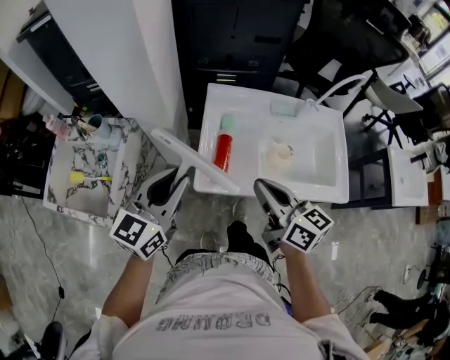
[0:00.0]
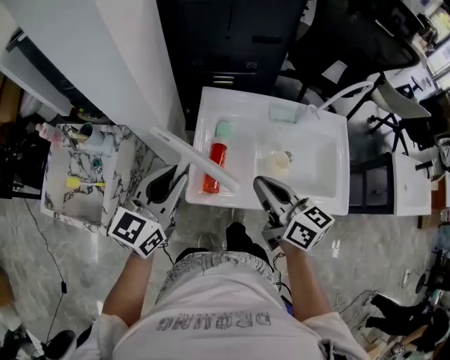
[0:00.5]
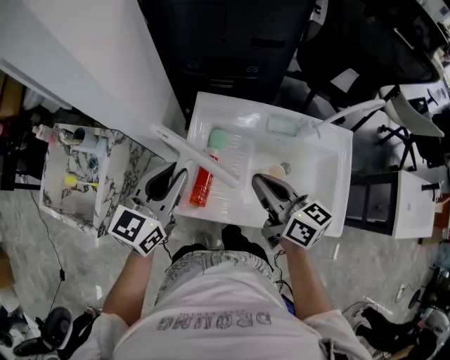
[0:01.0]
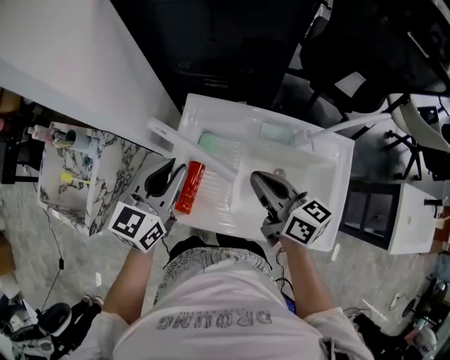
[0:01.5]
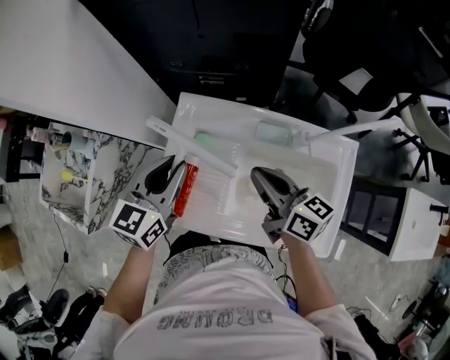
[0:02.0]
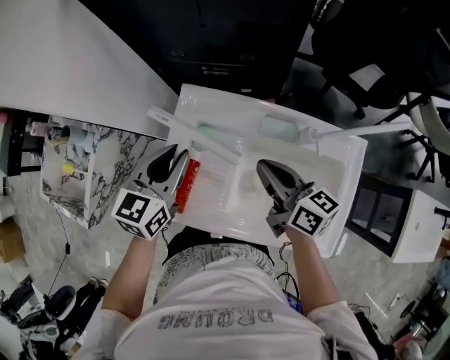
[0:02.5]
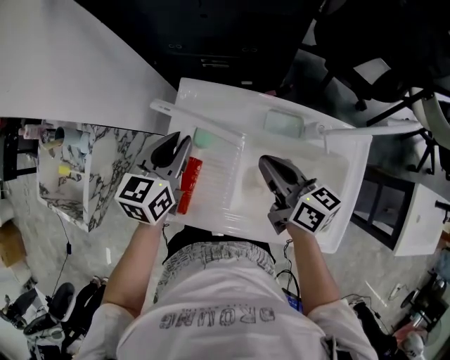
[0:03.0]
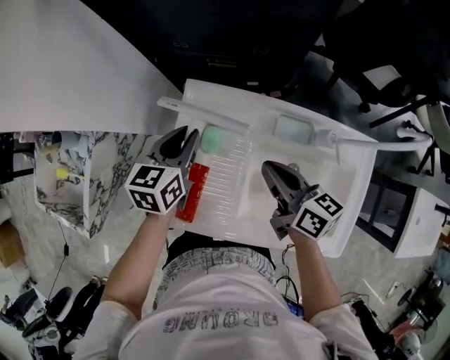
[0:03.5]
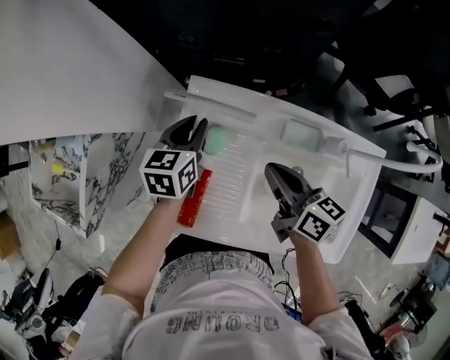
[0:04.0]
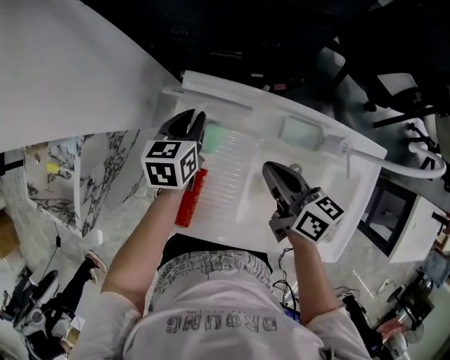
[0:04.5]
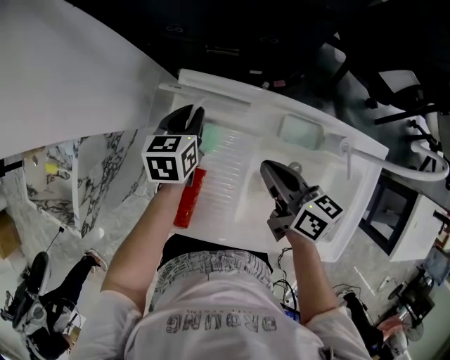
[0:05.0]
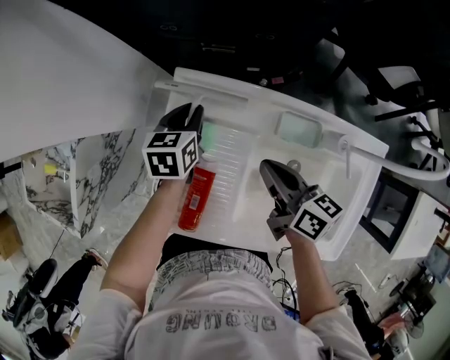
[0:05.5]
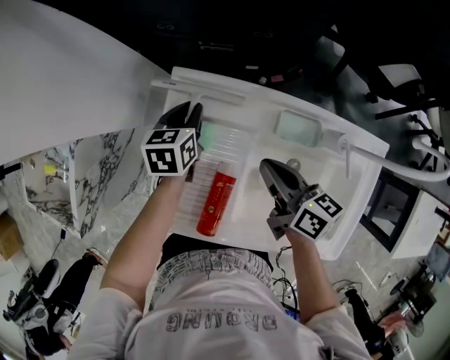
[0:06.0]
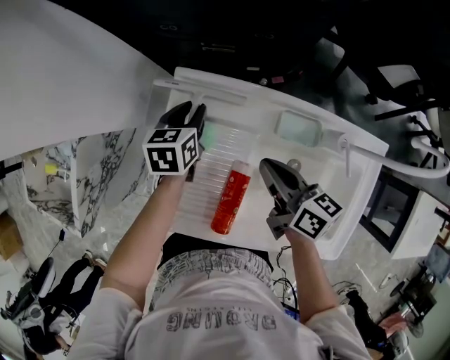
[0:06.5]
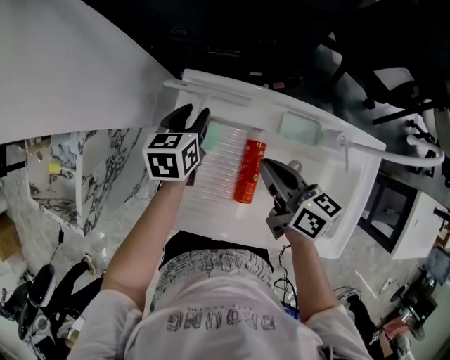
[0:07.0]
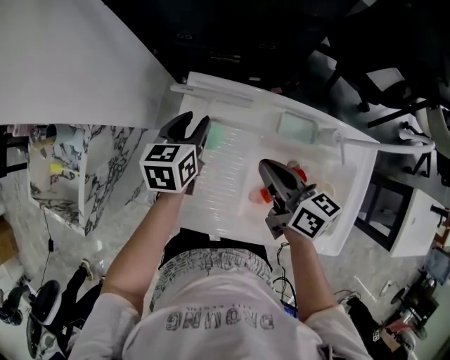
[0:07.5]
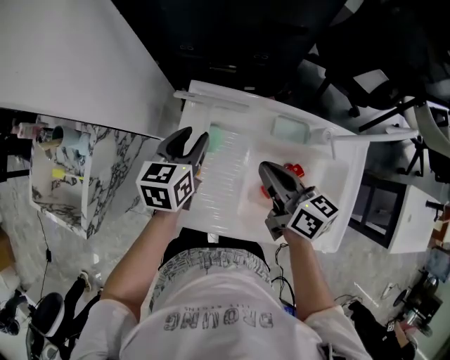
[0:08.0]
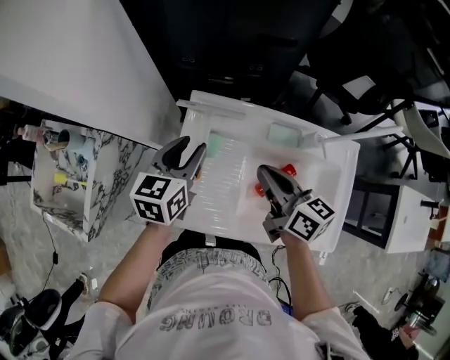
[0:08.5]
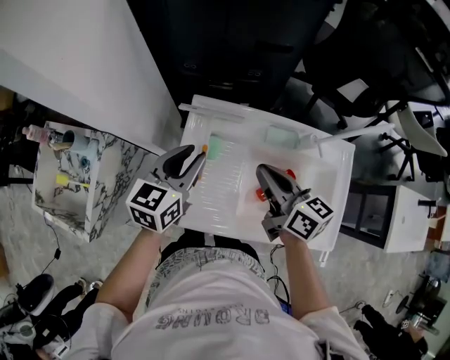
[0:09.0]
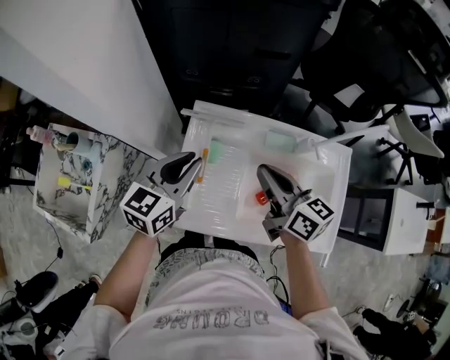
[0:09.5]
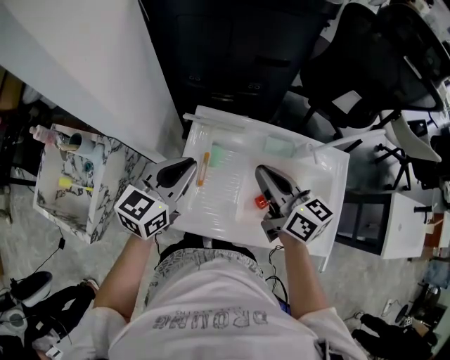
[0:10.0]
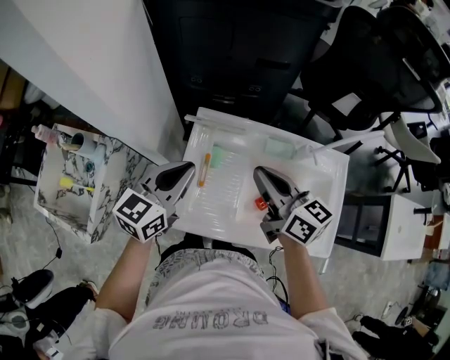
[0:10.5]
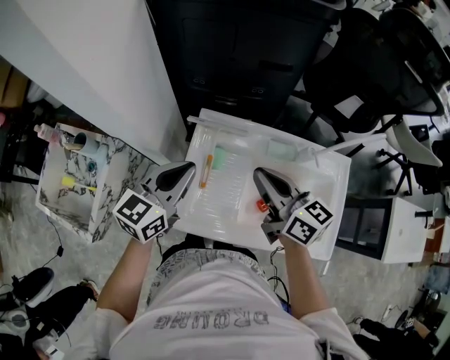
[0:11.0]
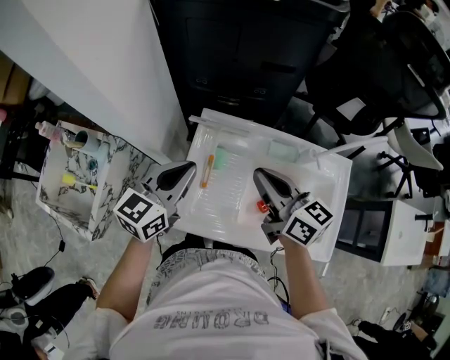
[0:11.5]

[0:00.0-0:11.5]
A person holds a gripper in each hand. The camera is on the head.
0:00.0 to 0:02.0: The two grippers go some 25 cm forward and to the right.
0:02.0 to 0:04.0: The right gripper goes about 10 cm downward and forward. Meanwhile the left gripper heads downward and forward, covering some 20 cm, and turns by about 20 degrees.
0:04.0 to 0:06.0: The left gripper is displaced downward by roughly 5 cm.
0:06.0 to 0:07.5: The right gripper moves roughly 5 cm, while the left gripper is displaced upward by approximately 10 cm, and opens up.
0:07.5 to 0:09.5: The left gripper travels upward and backward by some 20 cm, turns by roughly 30 degrees, and closes up. Meanwhile the right gripper shifts approximately 10 cm upward.
0:09.5 to 0:11.5: There are only small adjustments of the grippers.

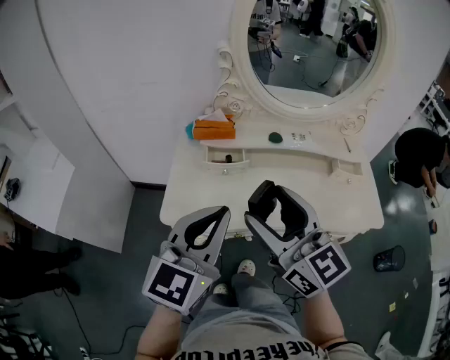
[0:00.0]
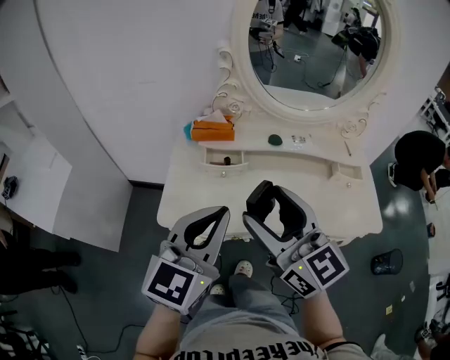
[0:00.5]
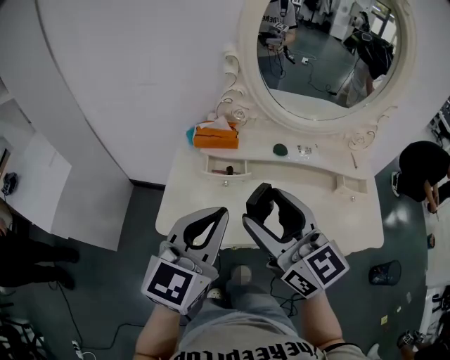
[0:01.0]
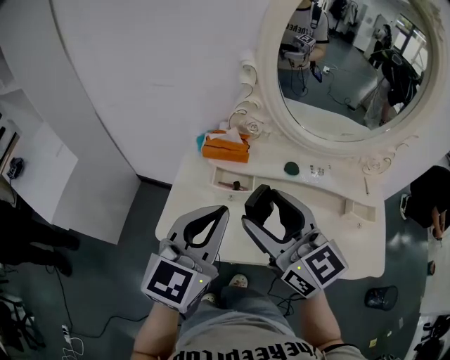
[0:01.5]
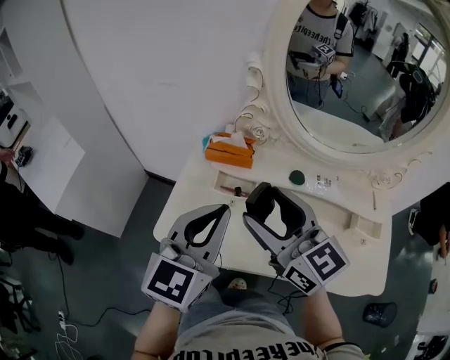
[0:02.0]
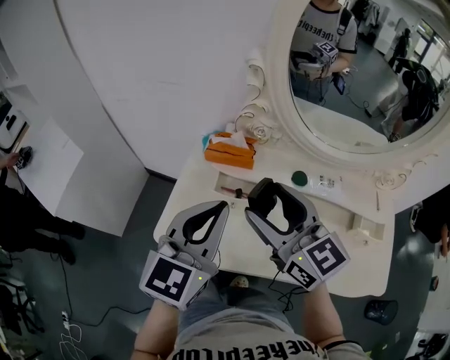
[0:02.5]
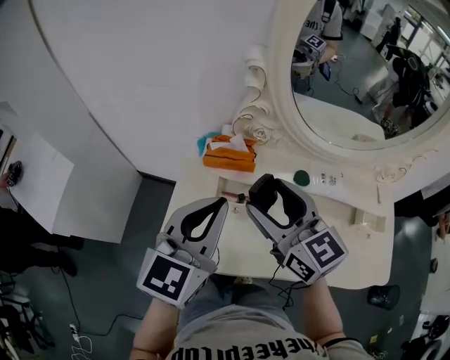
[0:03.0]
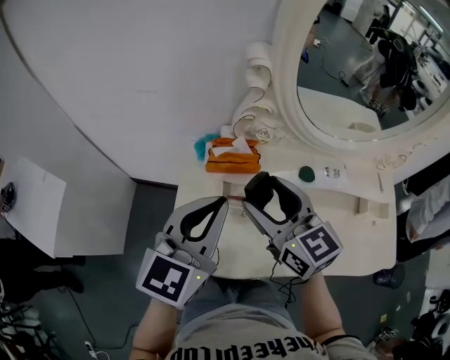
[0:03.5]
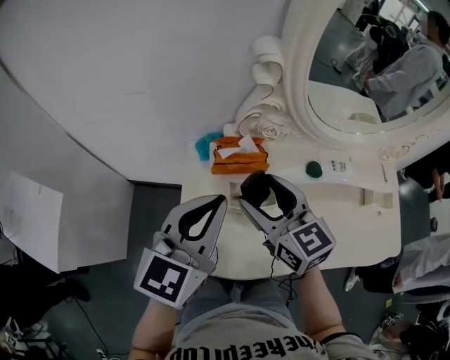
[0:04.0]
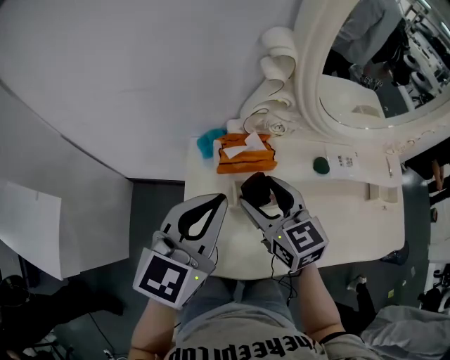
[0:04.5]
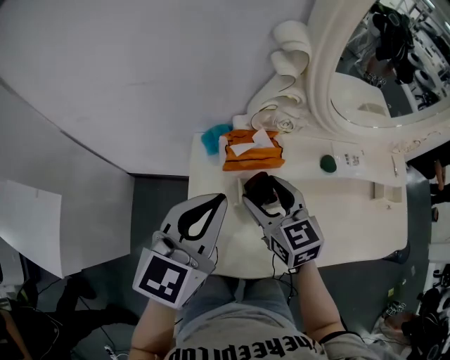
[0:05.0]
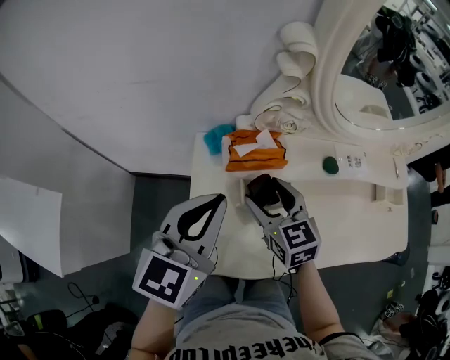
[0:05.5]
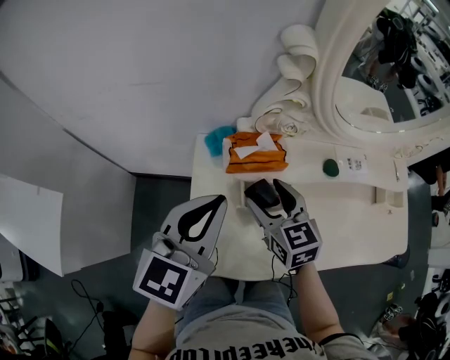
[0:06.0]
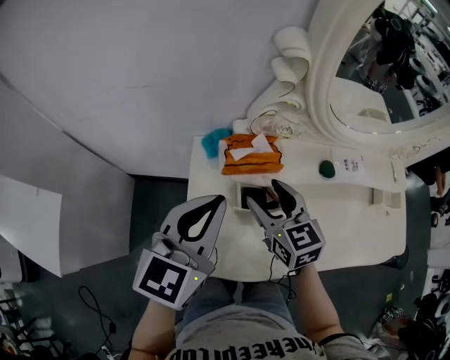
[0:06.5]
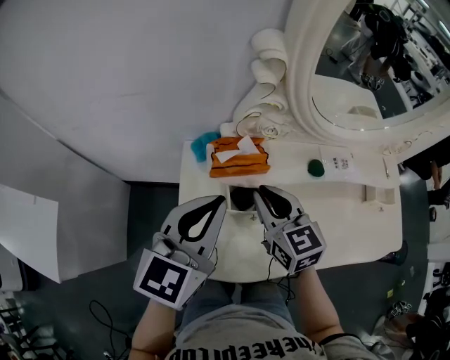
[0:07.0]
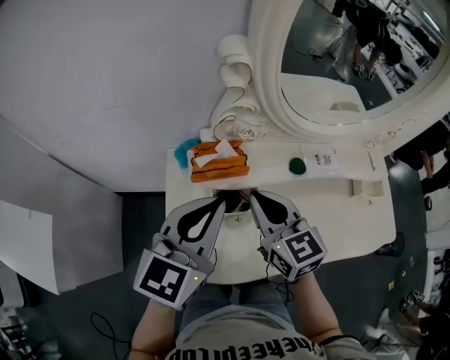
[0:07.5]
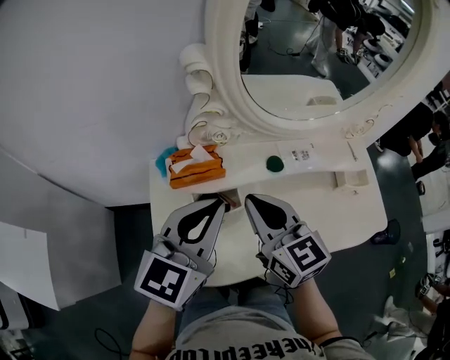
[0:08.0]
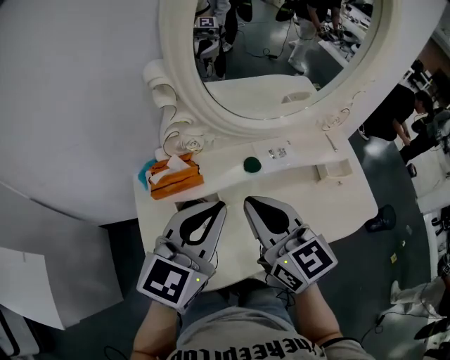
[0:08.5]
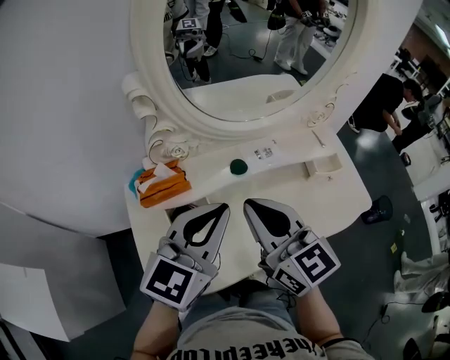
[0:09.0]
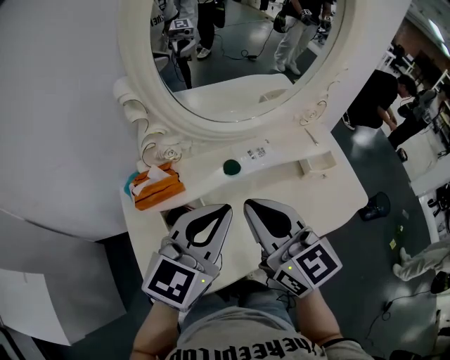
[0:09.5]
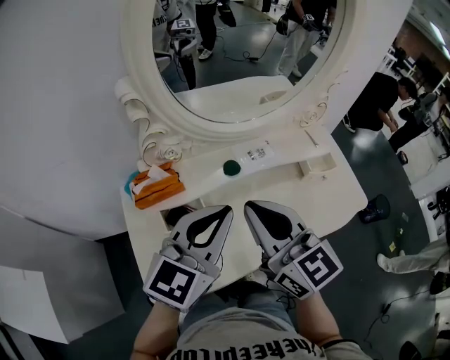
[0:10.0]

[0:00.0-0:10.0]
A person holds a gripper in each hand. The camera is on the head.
0:00.0 to 0:02.0: The two grippers go some 15 cm forward.
0:02.0 to 0:04.0: The left gripper heads forward and to the left, covering roughly 15 cm, while the right gripper moves forward, downward and to the left, approximately 15 cm, and changes its angle by some 20 degrees.
0:04.0 to 0:06.0: The right gripper shifts approximately 10 cm downward; the left gripper changes place by approximately 5 cm.
0:06.0 to 0:08.0: The left gripper is displaced to the right by approximately 10 cm. The right gripper travels upward and to the right by approximately 15 cm, and closes up.
0:08.0 to 0:10.0: The left gripper goes some 10 cm to the right, while the right gripper is displaced to the right and upward by roughly 10 cm.

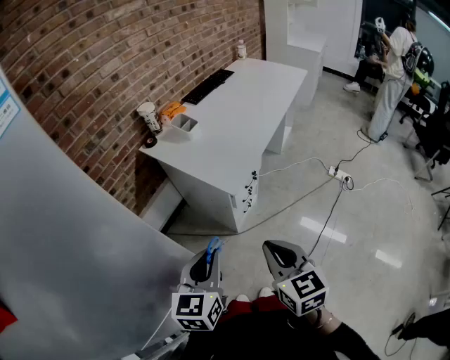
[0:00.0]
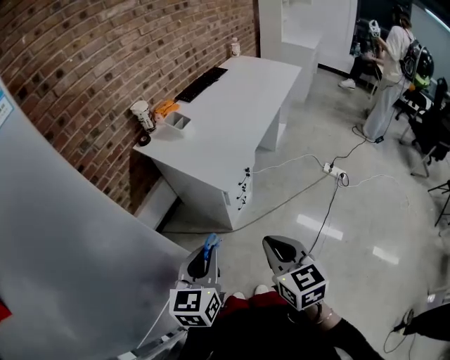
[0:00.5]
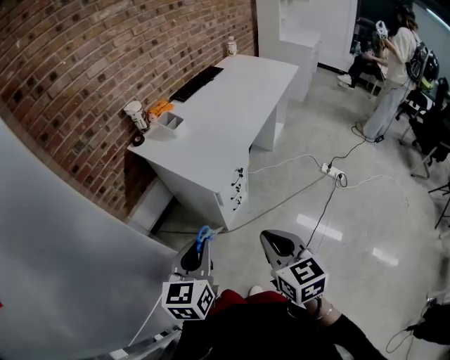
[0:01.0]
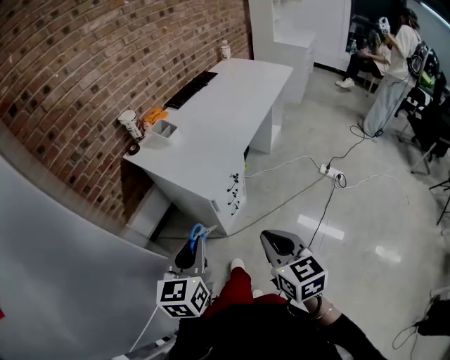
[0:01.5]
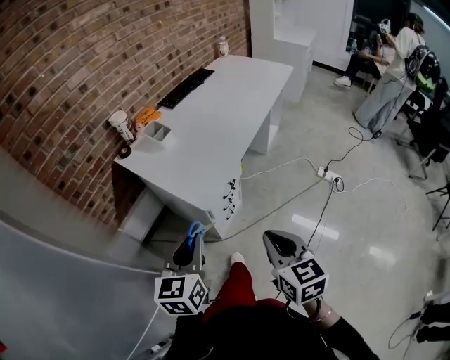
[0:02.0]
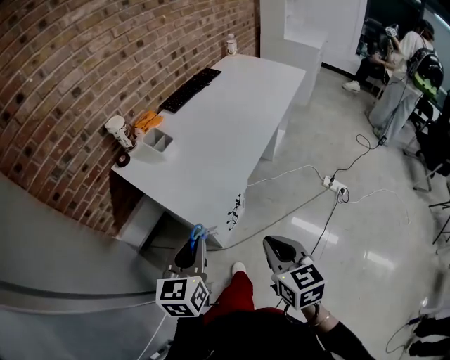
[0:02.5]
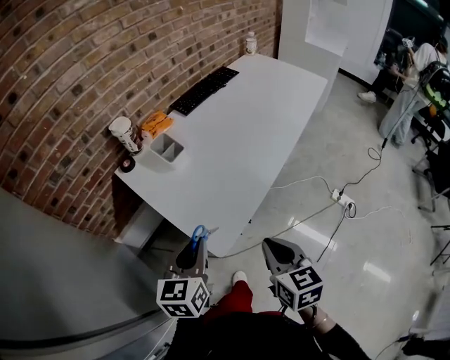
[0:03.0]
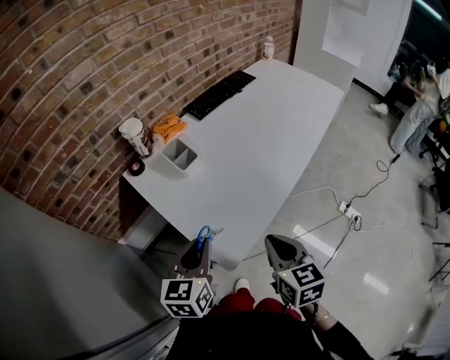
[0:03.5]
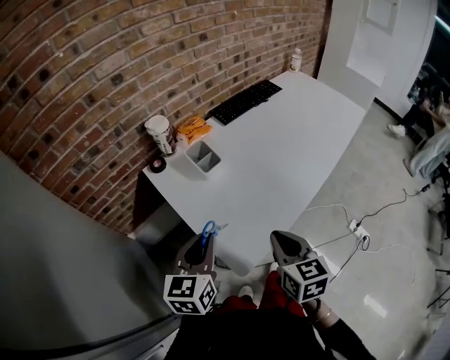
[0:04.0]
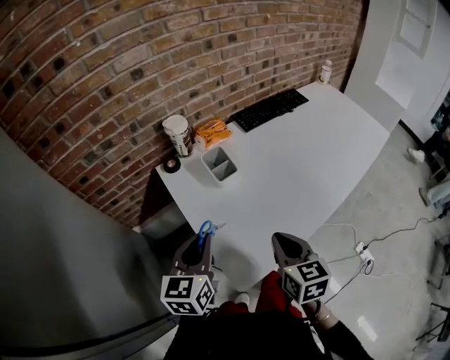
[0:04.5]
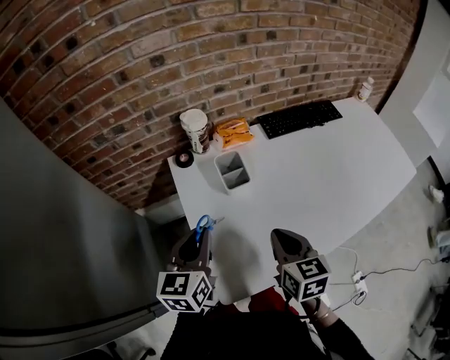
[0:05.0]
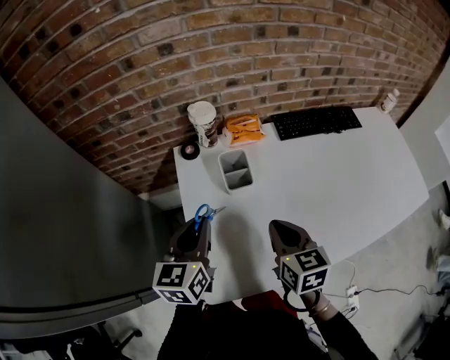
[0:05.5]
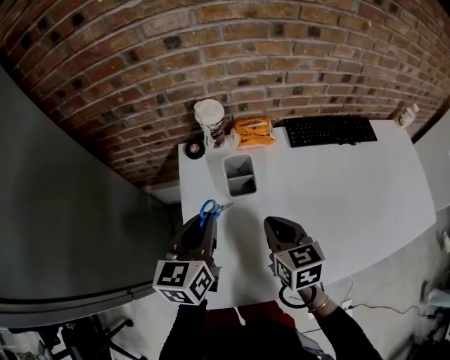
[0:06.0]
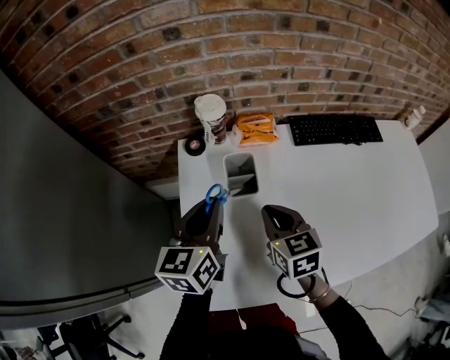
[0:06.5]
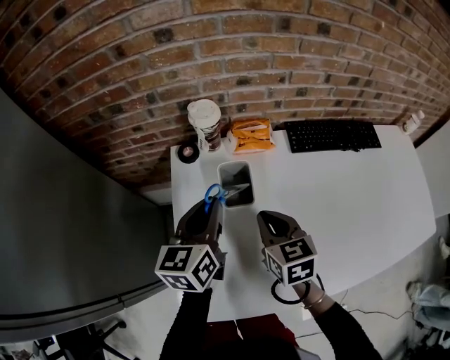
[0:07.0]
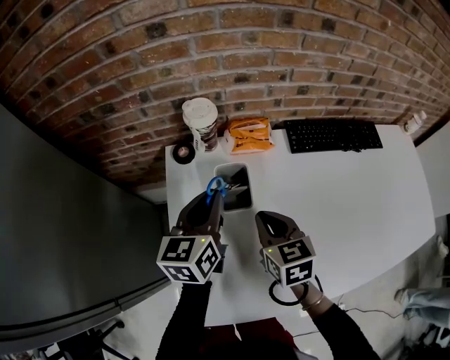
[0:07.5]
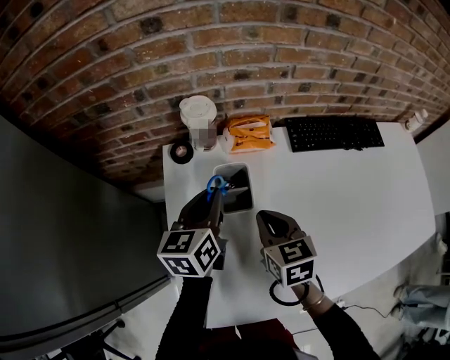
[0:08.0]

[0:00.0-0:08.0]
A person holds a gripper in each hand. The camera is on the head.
0:00.0 to 0:02.0: The right gripper is displaced to the right and forward by approximately 15 cm. Meanwhile the left gripper goes some 15 cm forward and to the right.
0:02.0 to 0:04.0: The grippers both shift forward by approximately 25 cm.
0:04.0 to 0:06.0: The left gripper changes place by approximately 15 cm, and changes its angle by approximately 40 degrees; the right gripper ends up approximately 25 cm from where it was, and turns by roughly 40 degrees.
0:06.0 to 0:08.0: The left gripper moves forward and downward, about 15 cm. The right gripper travels forward by approximately 10 cm.
